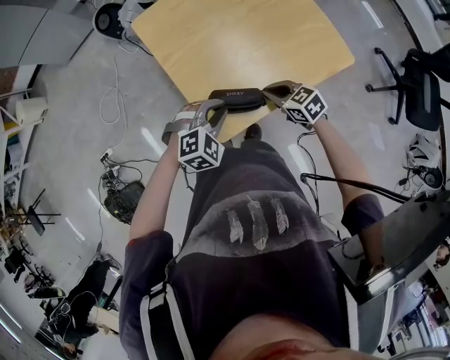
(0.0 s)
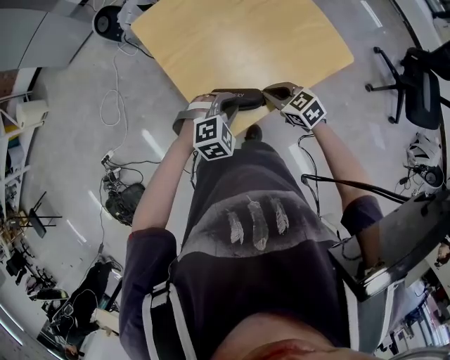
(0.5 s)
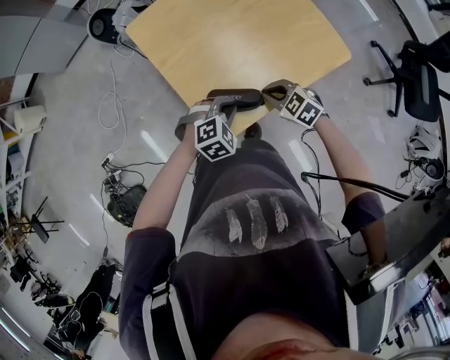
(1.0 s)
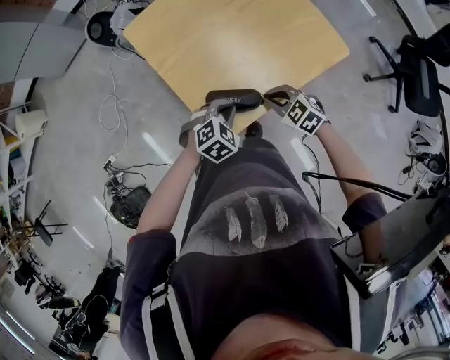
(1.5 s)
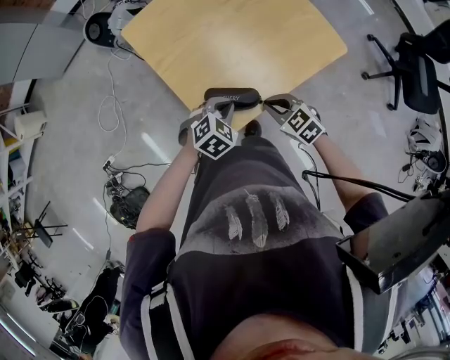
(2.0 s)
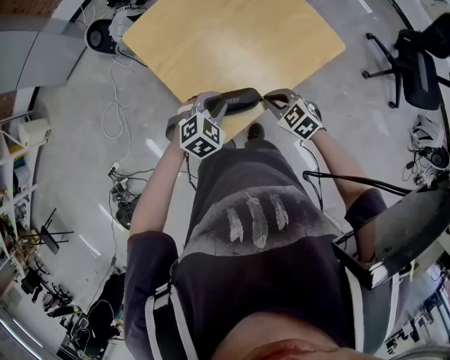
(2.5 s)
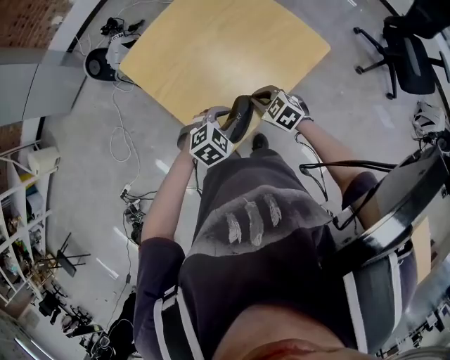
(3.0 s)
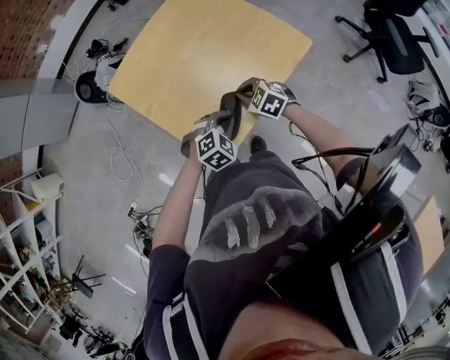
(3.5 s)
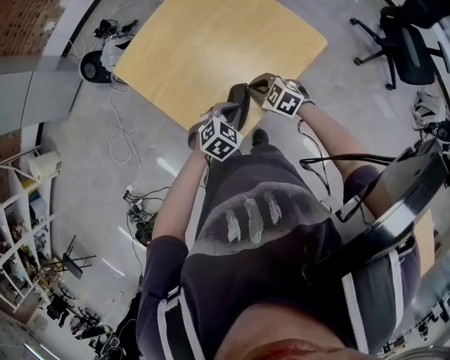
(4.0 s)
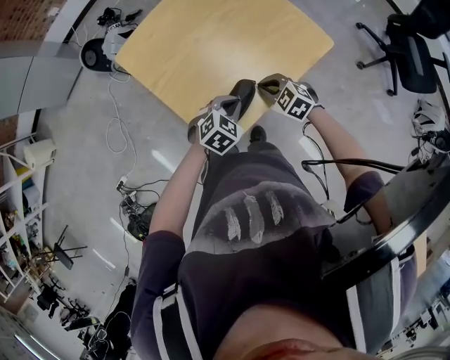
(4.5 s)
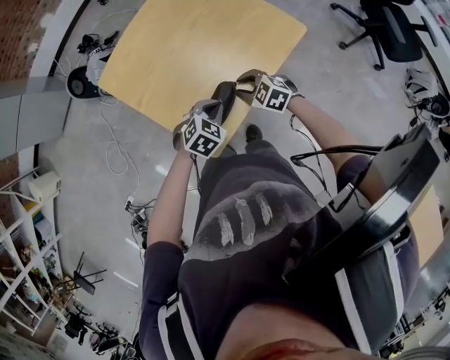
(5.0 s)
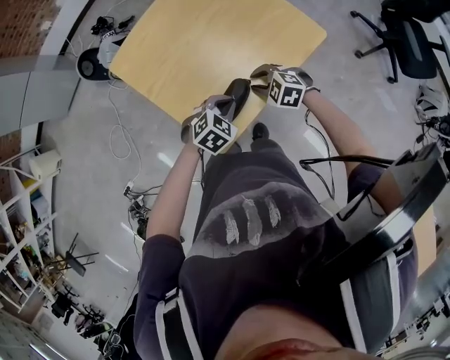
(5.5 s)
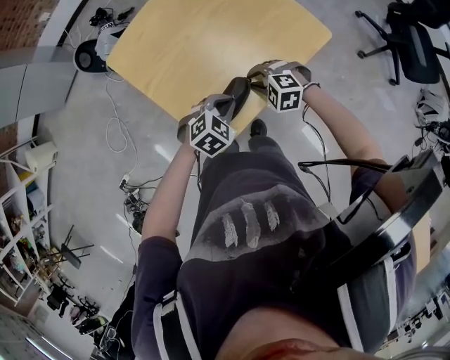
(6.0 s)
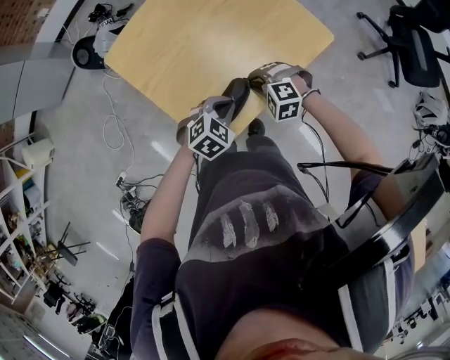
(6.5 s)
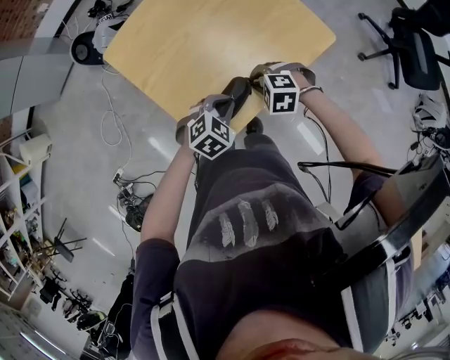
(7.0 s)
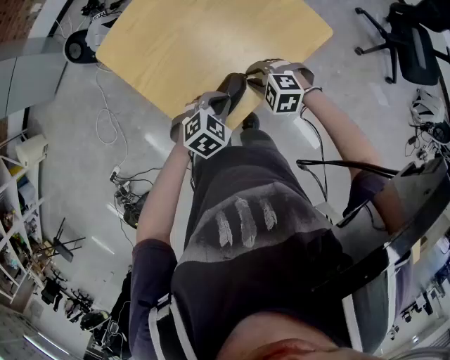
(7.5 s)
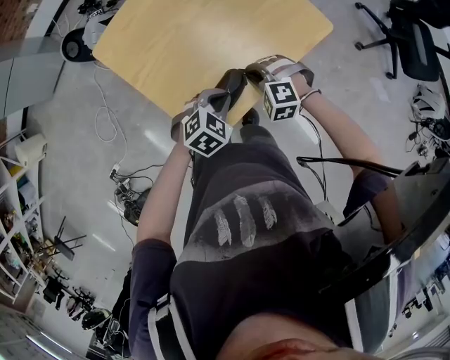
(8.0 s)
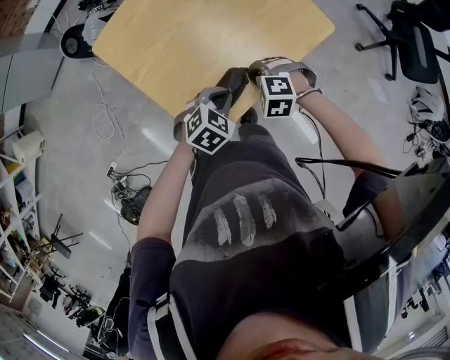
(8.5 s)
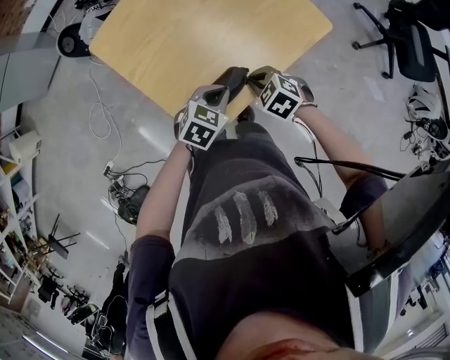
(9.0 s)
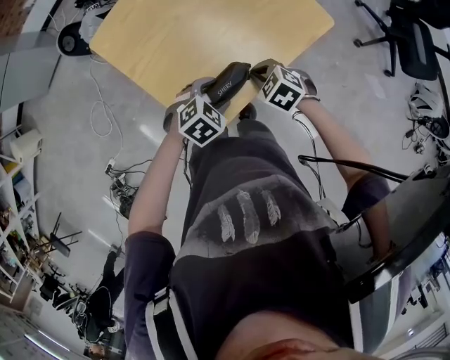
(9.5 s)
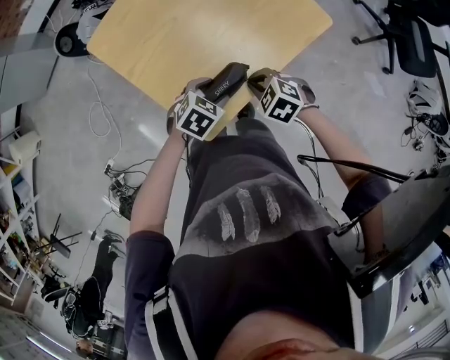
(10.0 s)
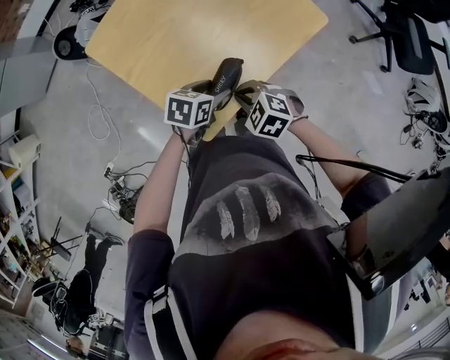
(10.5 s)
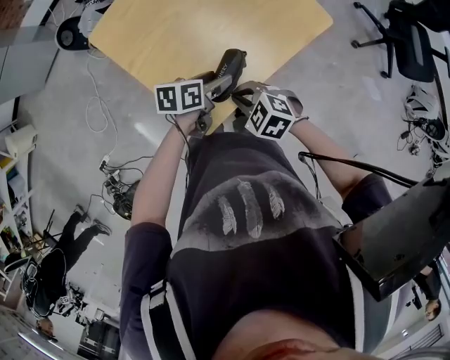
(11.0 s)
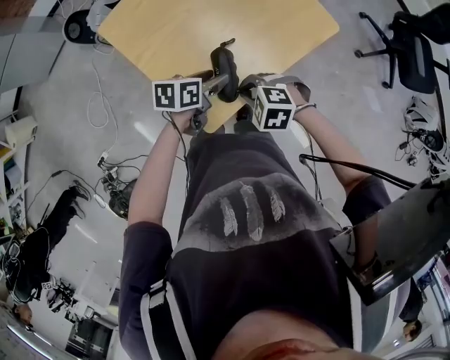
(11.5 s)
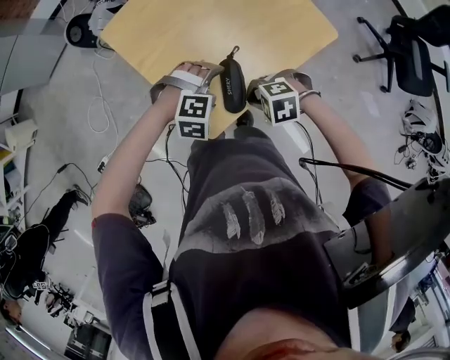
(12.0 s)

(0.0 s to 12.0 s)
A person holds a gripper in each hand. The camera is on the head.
0.0 s - 2.0 s: The left gripper moves downward, some 5 cm, while the right gripper is displaced backward by some 5 cm.
2.0 s - 4.0 s: The left gripper travels to the right by approximately 5 cm. The right gripper travels forward by about 10 cm.
4.0 s - 6.0 s: The right gripper rotates some 30 degrees.
6.0 s - 8.0 s: The grippers move only a little.
8.0 s - 10.0 s: The right gripper changes its angle by approximately 40 degrees, while the left gripper opens its fingers.
10.0 s - 12.0 s: The left gripper twists about 60 degrees clockwise, seen from behind, and opens up; the right gripper shifts by roughly 5 cm, and swivels about 40 degrees.

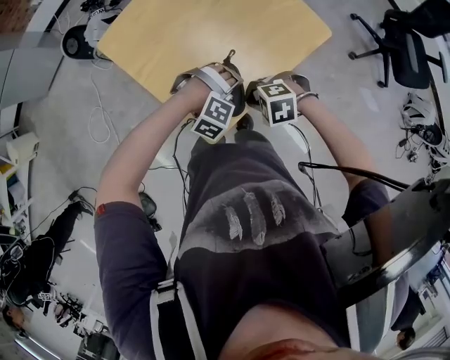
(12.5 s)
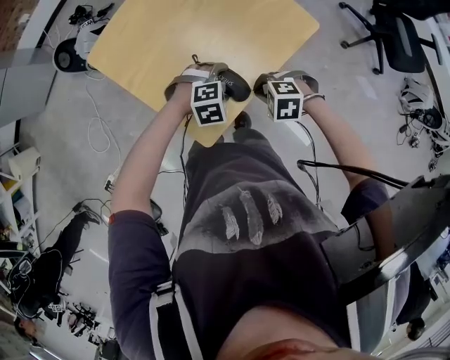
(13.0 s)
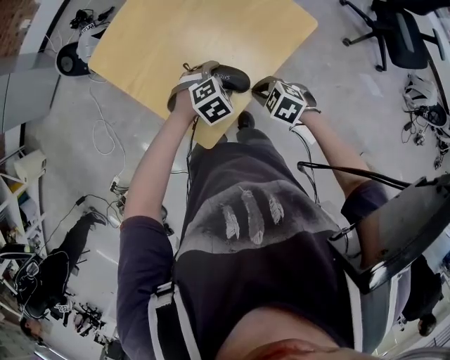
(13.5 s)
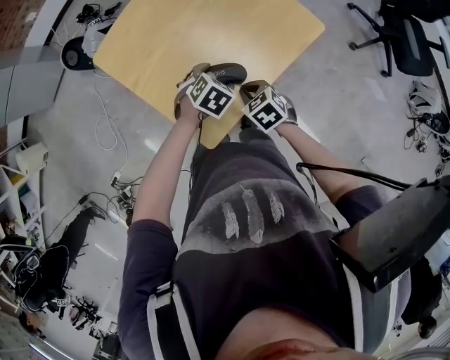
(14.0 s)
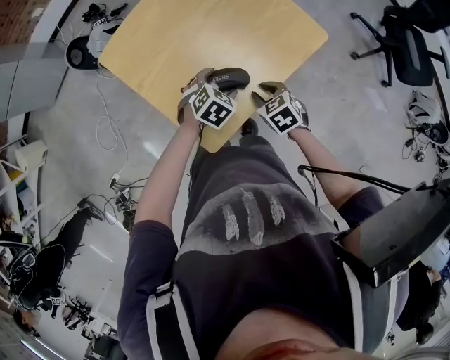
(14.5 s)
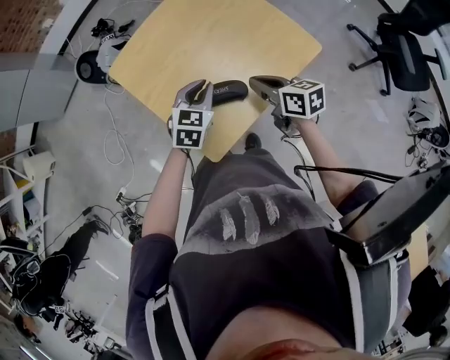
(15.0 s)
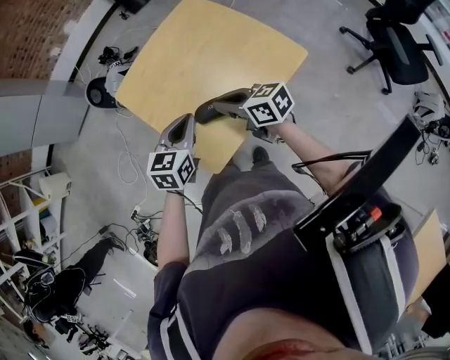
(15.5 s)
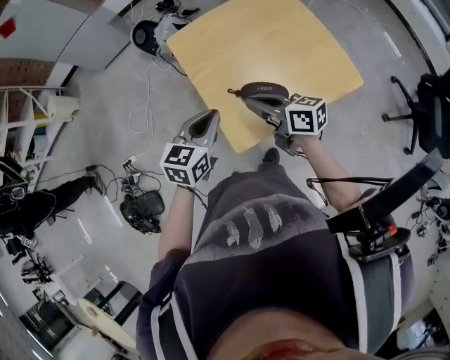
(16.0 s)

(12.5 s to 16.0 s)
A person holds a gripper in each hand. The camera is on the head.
12.5 s - 14.5 s: The right gripper shifts by approximately 10 cm, rotates around the line of its fingers by about 60 degrees, clockwise from behind, and opens its fingers, while the left gripper changes place by some 10 cm, and rolls counterclockwise, seen from behind, by roughly 80 degrees.
14.5 s - 16.0 s: Both grippers move upward, roughly 20 cm. The right gripper tilts its fingers about 50 degrees upward, and closes up; the left gripper tips its fingers upward by about 30 degrees, and closes up.

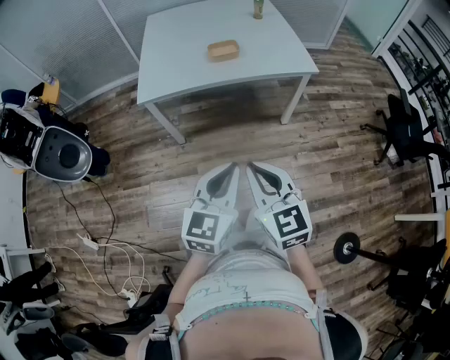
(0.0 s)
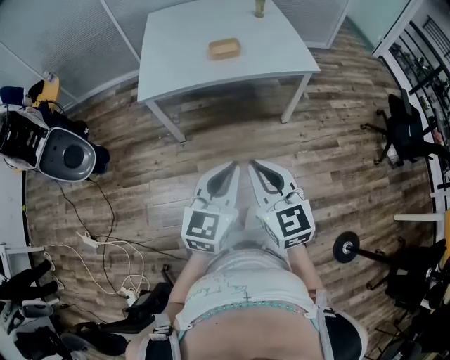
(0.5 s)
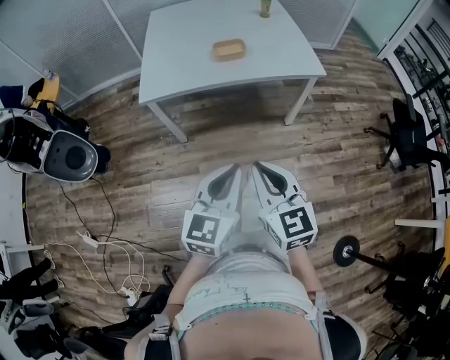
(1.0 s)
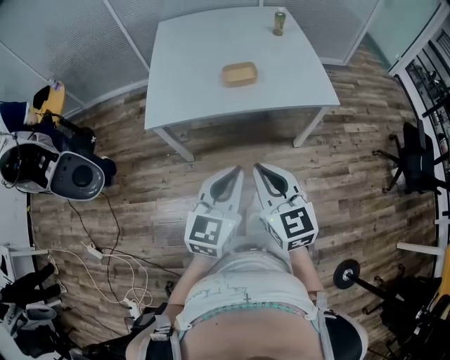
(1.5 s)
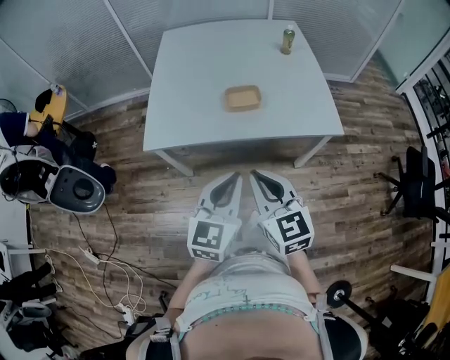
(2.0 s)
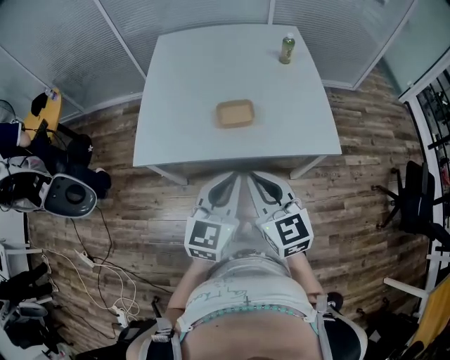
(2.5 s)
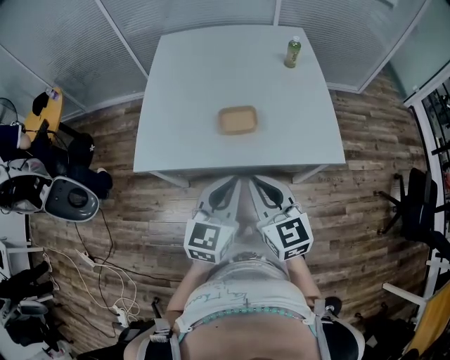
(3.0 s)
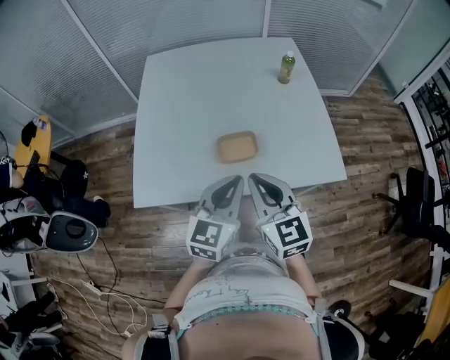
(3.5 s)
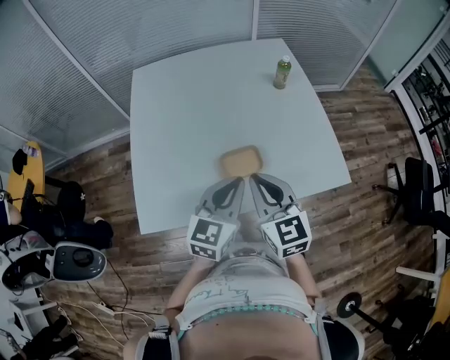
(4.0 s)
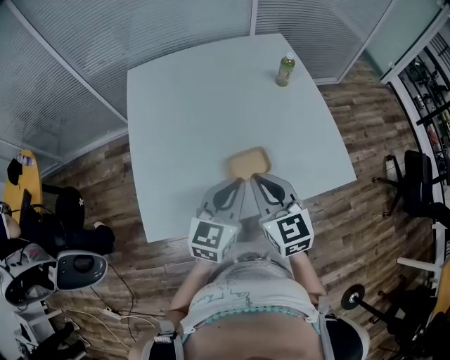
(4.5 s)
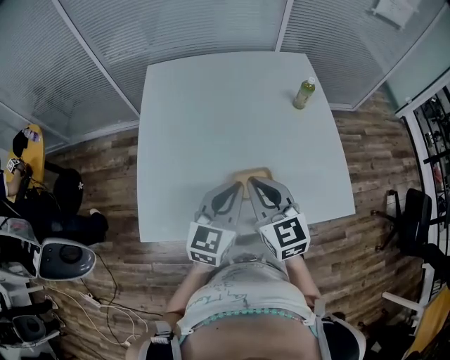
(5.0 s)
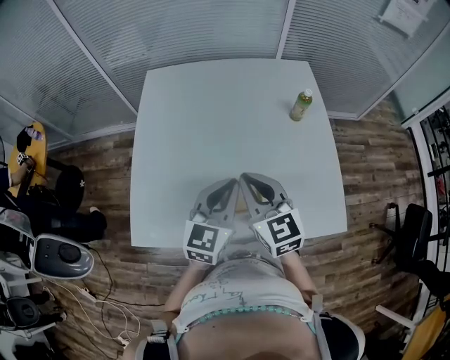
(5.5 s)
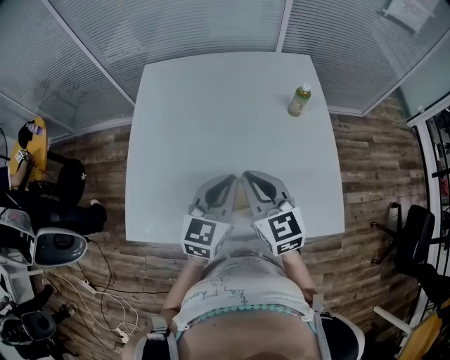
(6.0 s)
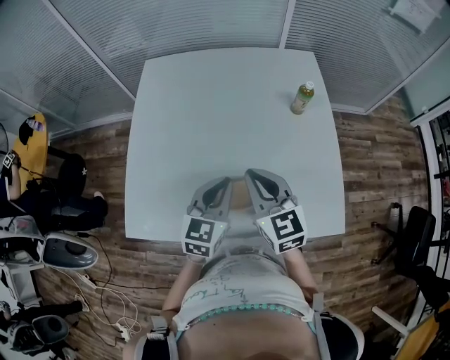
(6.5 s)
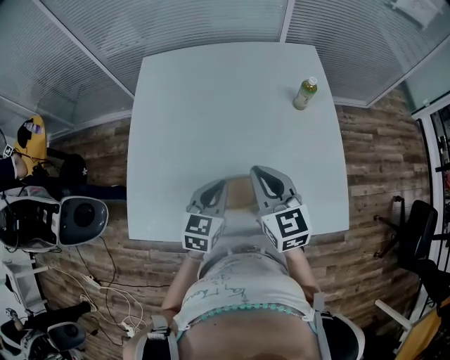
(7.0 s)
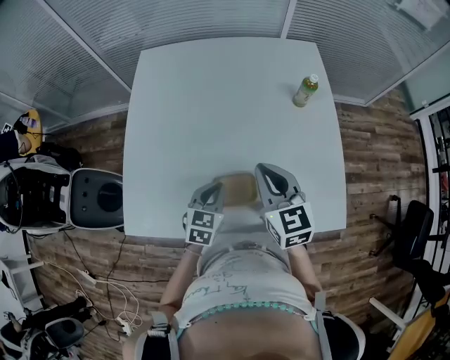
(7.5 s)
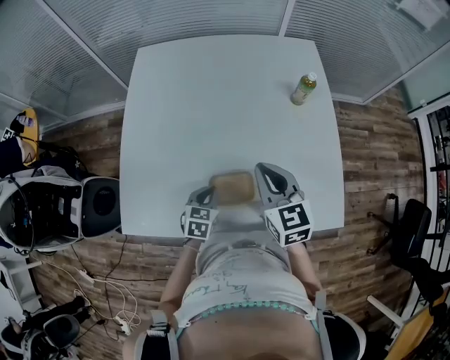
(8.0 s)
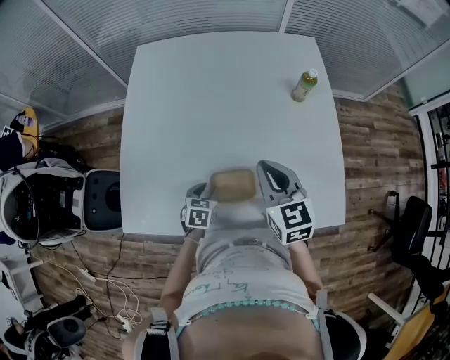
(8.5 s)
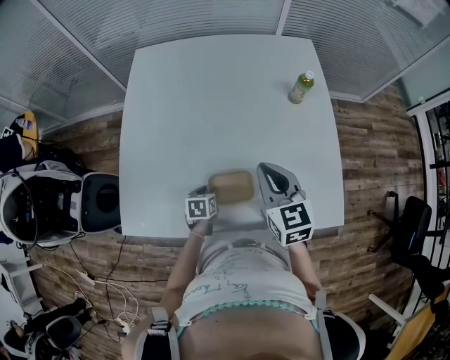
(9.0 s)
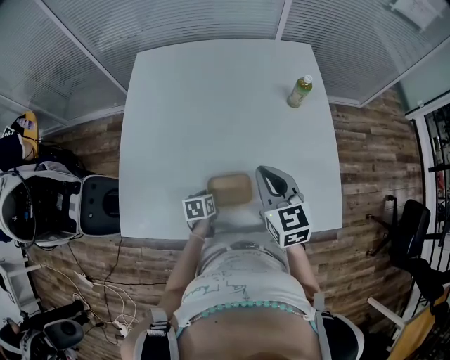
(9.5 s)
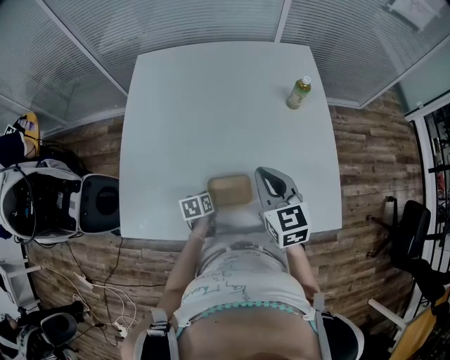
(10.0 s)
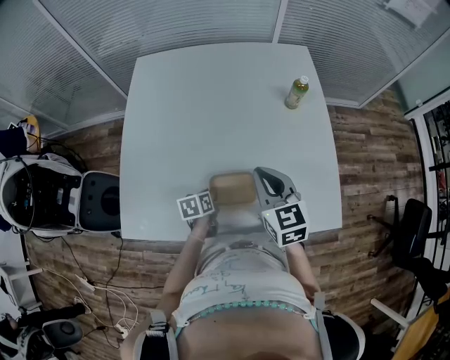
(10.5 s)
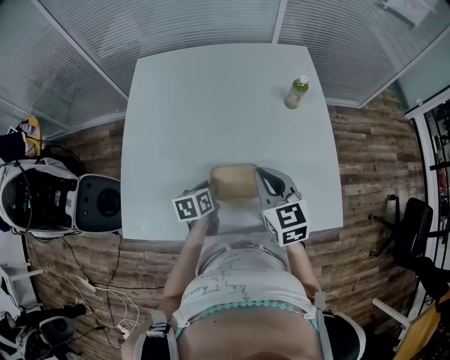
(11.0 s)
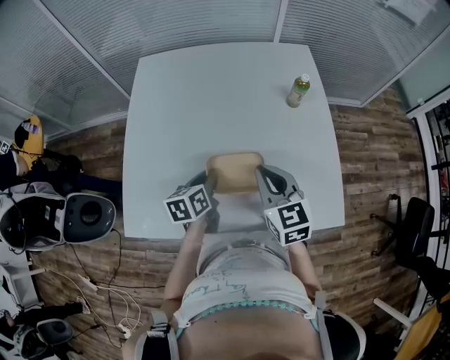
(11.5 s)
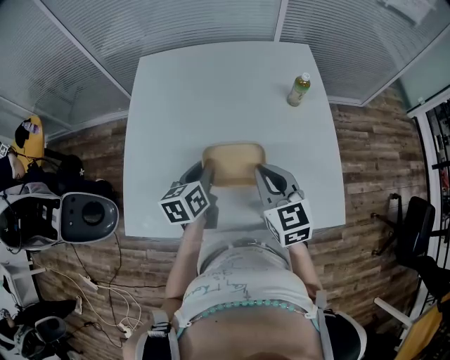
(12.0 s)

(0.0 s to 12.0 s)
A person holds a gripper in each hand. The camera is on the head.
0.0 s - 2.0 s: The two grippers go approximately 30 cm forward.
2.0 s - 4.0 s: The grippers both shift forward by some 30 cm.
4.0 s - 6.0 s: The grippers both shift forward by roughly 15 cm.
6.0 s - 8.0 s: The right gripper shifts by some 5 cm. The left gripper is displaced downward by some 20 cm, and tilts its fingers approximately 30 degrees downward.
8.0 s - 10.0 s: The left gripper goes approximately 10 cm downward, swivels about 40 degrees, and opens, then closes again.
10.0 s - 12.0 s: The left gripper goes roughly 20 cm upward, and changes its angle by roughly 30 degrees.
